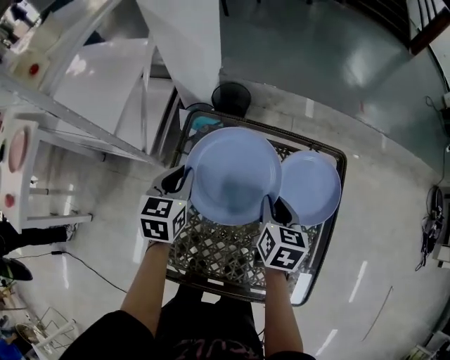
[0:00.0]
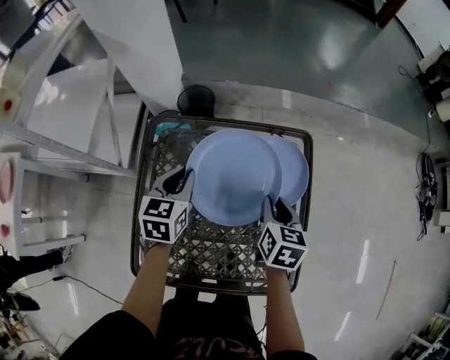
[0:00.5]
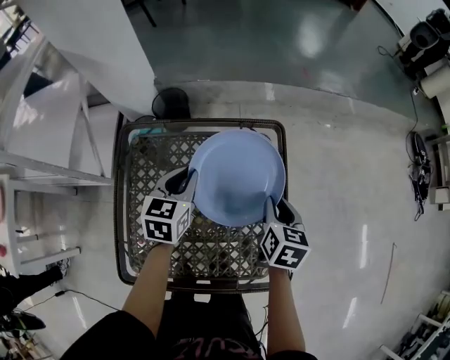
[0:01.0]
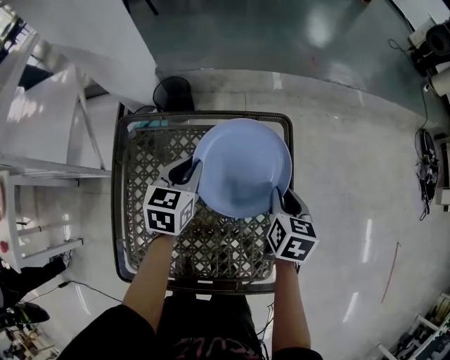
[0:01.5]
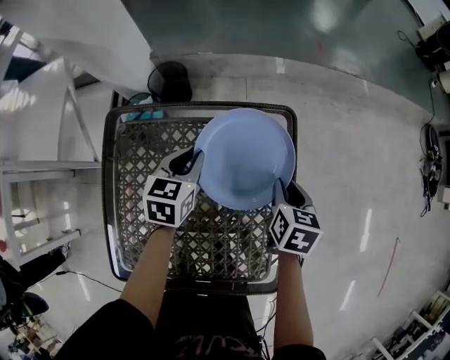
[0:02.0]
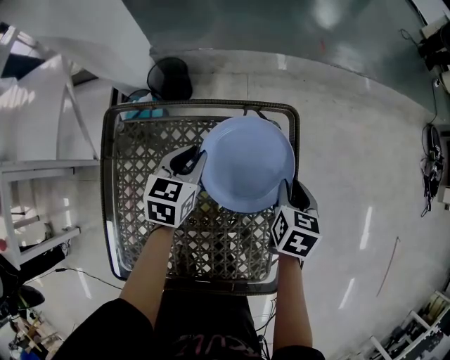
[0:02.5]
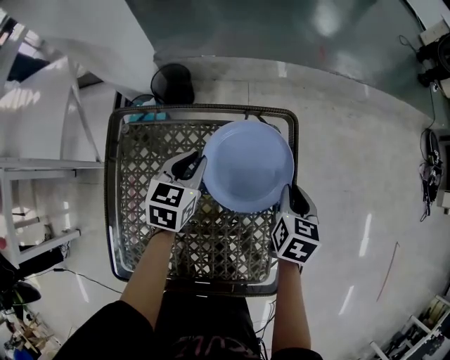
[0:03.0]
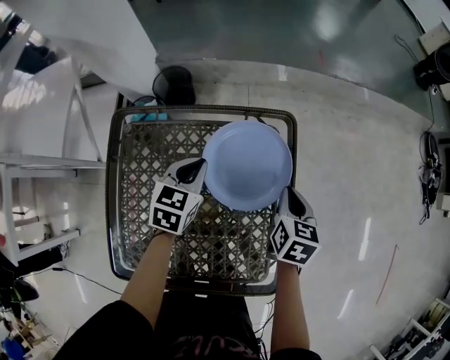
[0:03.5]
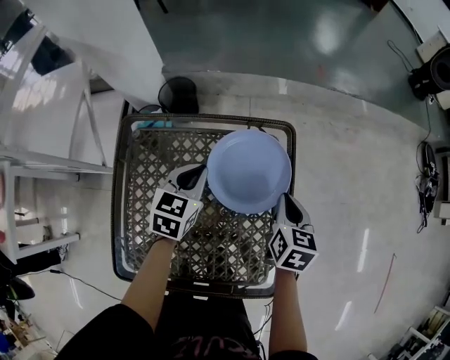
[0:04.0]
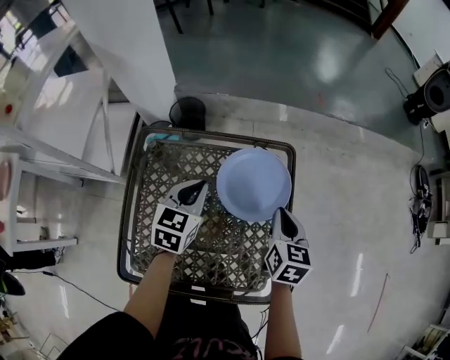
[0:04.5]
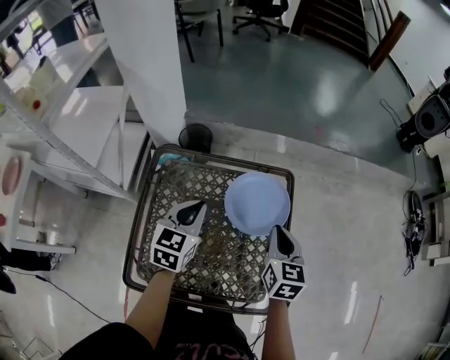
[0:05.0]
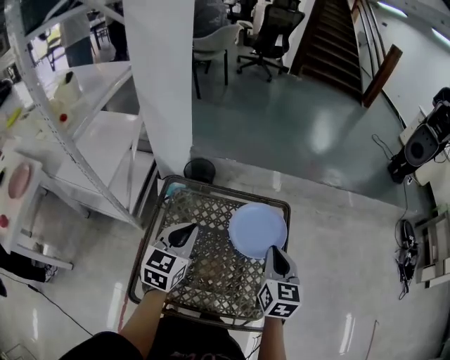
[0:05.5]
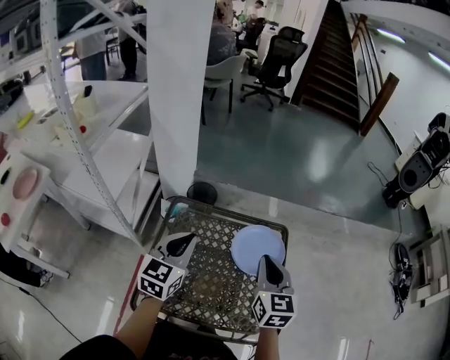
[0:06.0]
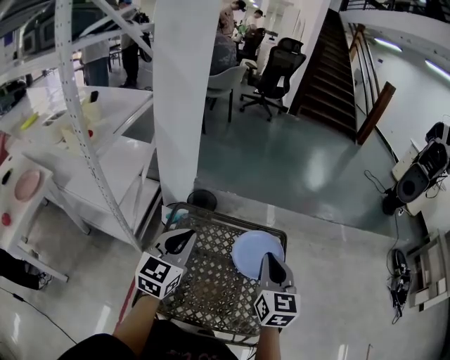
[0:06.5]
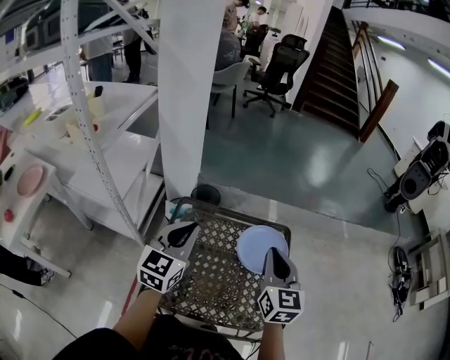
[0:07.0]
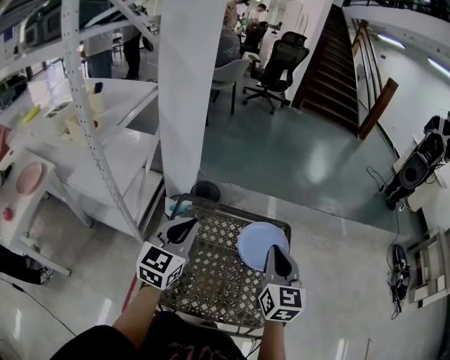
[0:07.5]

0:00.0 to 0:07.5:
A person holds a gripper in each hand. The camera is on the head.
0:00.0 to 0:02.0: The right gripper is displaced to the right by approximately 25 cm, while the left gripper travels to the right and forward by some 25 cm.
0:02.0 to 0:04.0: The right gripper ends up about 5 cm from where it was, and closes up.
0:04.0 to 0:05.5: The right gripper moves upward, to the left and backward, approximately 20 cm, and swivels approximately 20 degrees. Meanwhile the left gripper heads upward, backward and to the left, covering some 25 cm.
0:05.5 to 0:07.5: The grippers both shift upward and to the left by some 10 cm.

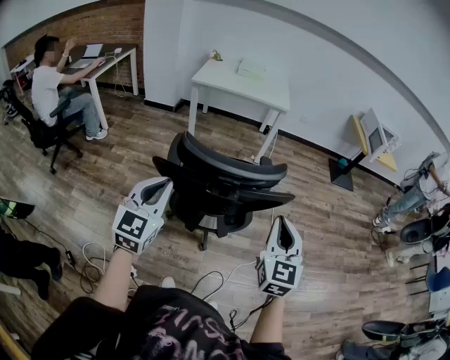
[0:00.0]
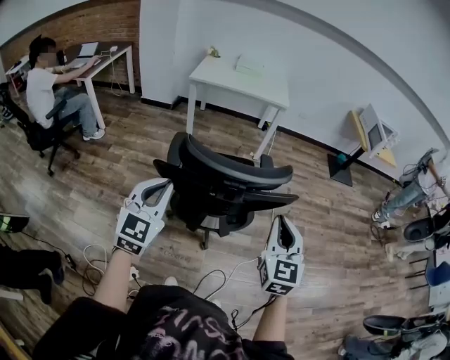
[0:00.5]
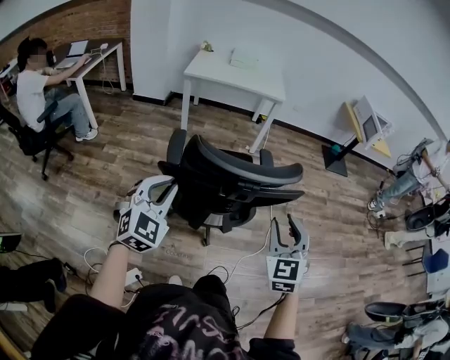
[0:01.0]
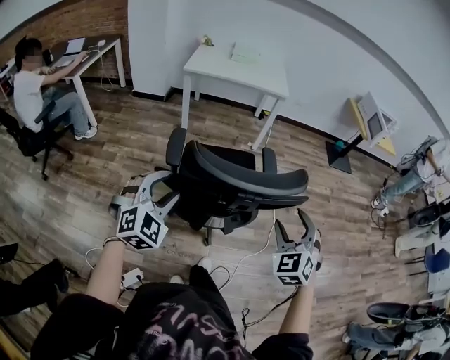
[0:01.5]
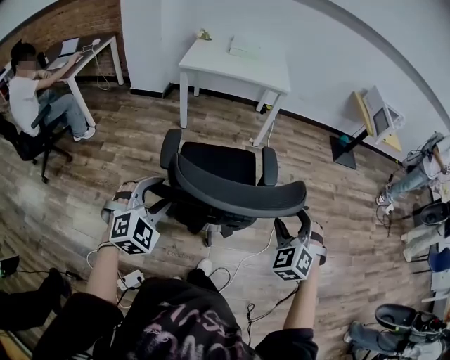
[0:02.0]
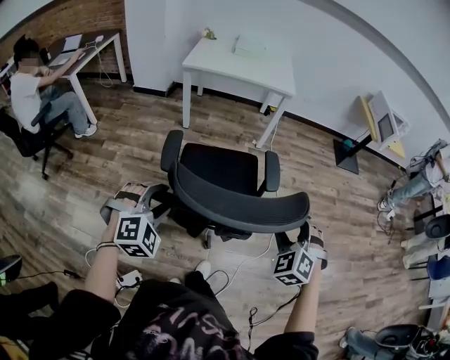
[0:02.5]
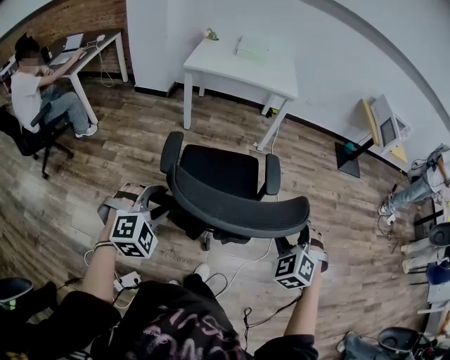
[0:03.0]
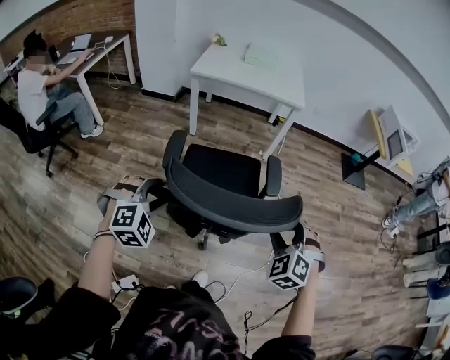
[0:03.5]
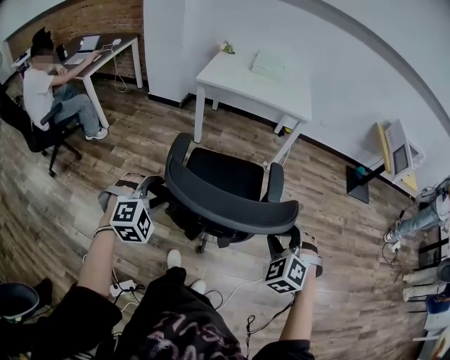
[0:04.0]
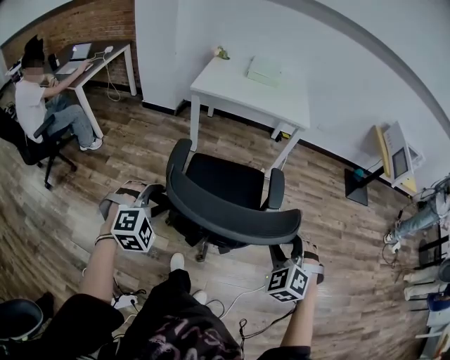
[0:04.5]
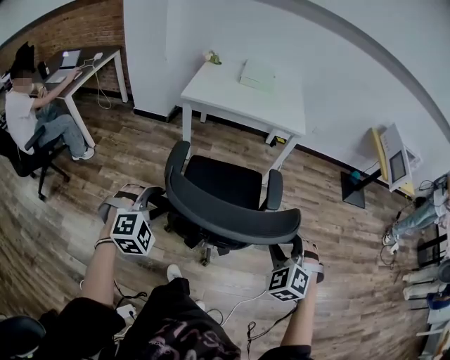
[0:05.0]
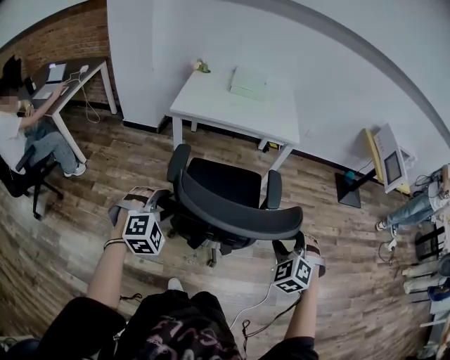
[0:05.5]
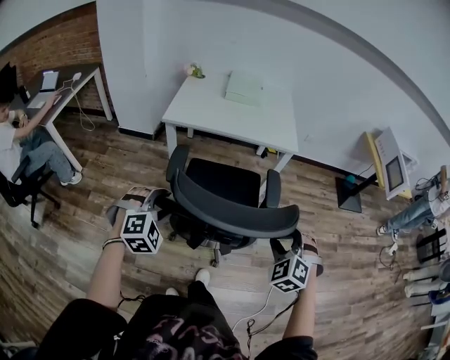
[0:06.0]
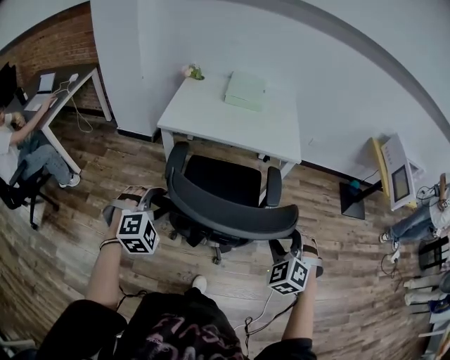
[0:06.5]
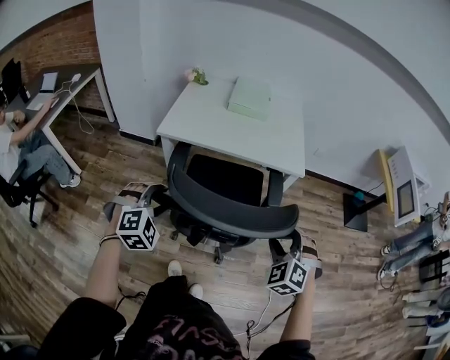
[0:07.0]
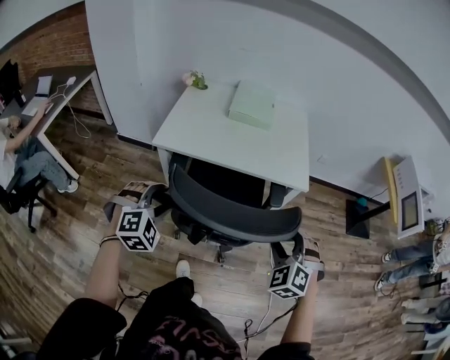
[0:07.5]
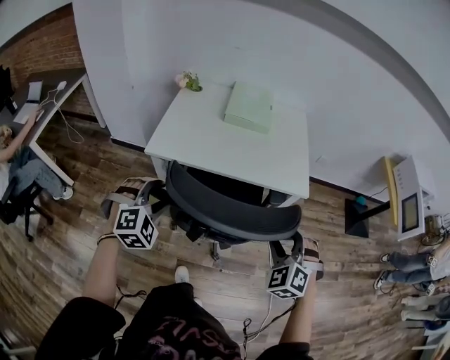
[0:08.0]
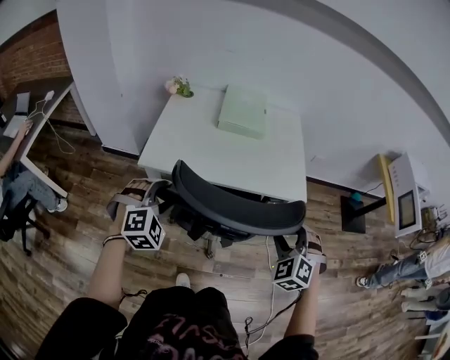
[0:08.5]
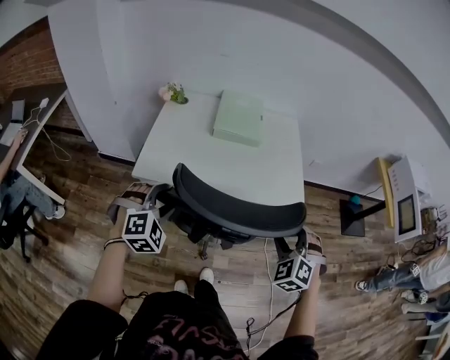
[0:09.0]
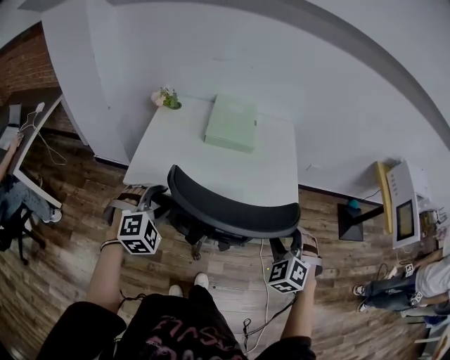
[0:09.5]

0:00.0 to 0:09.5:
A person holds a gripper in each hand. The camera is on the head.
0:00.0 to 0:02.0: The left gripper goes about 15 cm downward and forward, changes its angle by roughly 50 degrees, and opens. Meanwhile the right gripper moves forward and downward, some 15 cm, twists about 50 degrees counterclockwise, seen from behind, and opens its fingers.
0:02.0 to 0:04.0: Both grippers travel together forward, roughly 15 cm.
0:04.0 to 0:05.5: The two grippers go some 20 cm forward.
0:05.5 to 0:07.5: The grippers both shift forward by roughly 35 cm.
0:07.5 to 0:09.5: Both grippers move forward, approximately 20 cm.

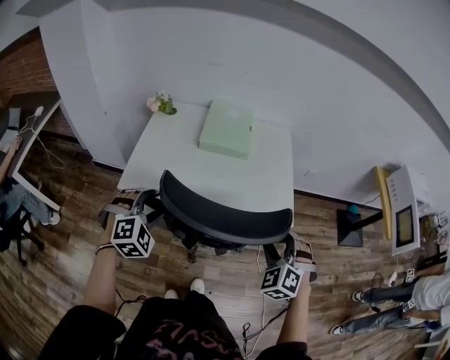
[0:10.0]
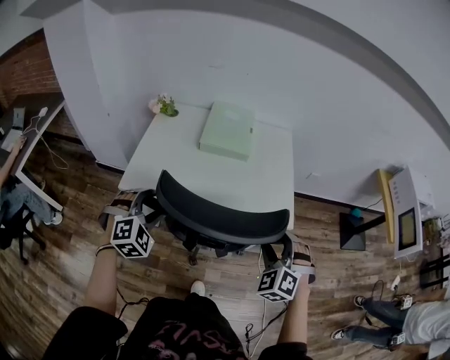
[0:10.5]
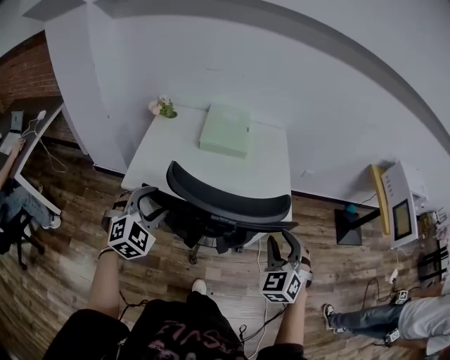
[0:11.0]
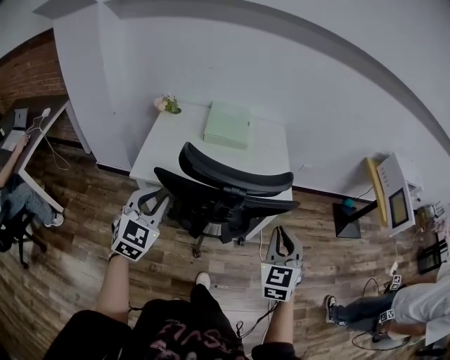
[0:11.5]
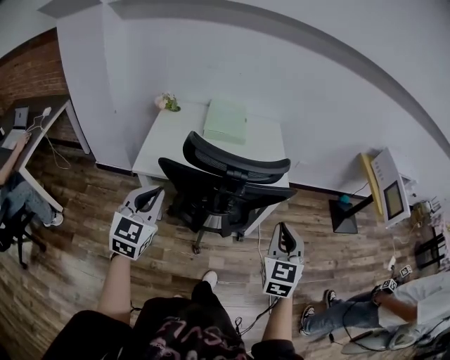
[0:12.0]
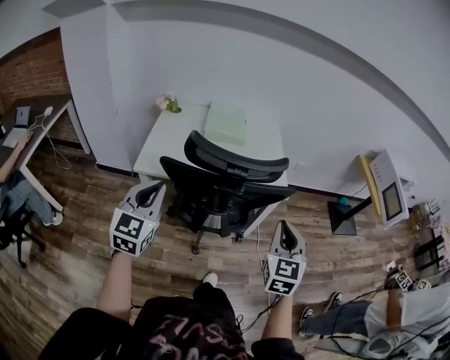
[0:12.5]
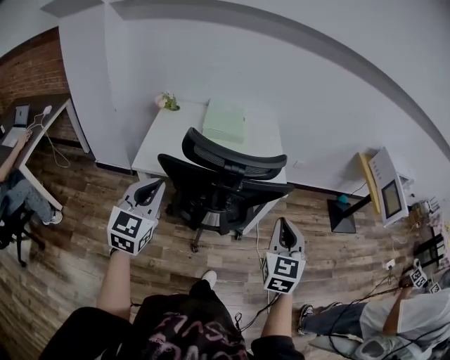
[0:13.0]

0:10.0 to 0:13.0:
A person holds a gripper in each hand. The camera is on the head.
0:10.0 to 0:11.5: Both grippers move backward and upward, approximately 15 cm. The left gripper changes its angle by about 40 degrees, and closes; the right gripper rotates some 50 degrees, and closes its fingers.
0:11.5 to 0:13.0: The left gripper travels backward and upward by roughly 10 cm, while the right gripper travels backward by roughly 5 cm.

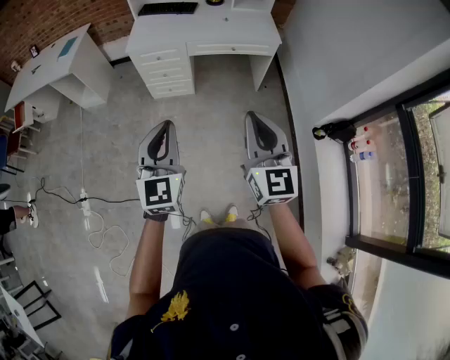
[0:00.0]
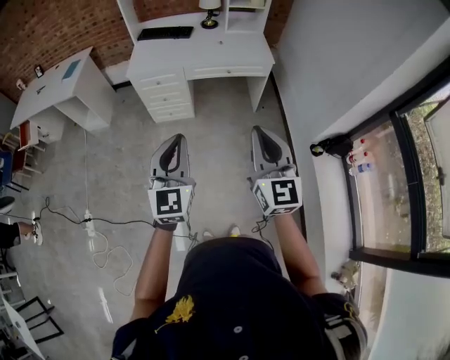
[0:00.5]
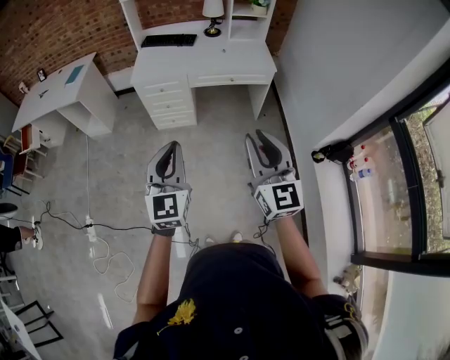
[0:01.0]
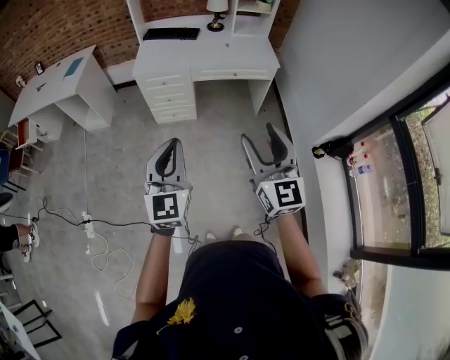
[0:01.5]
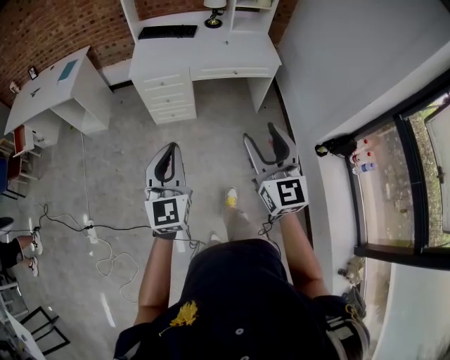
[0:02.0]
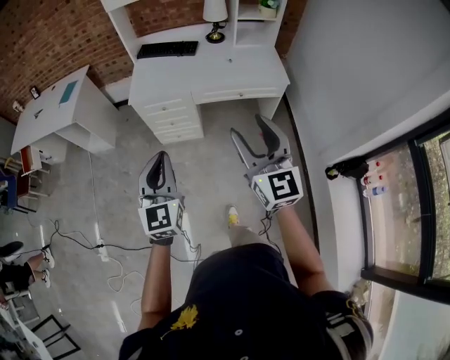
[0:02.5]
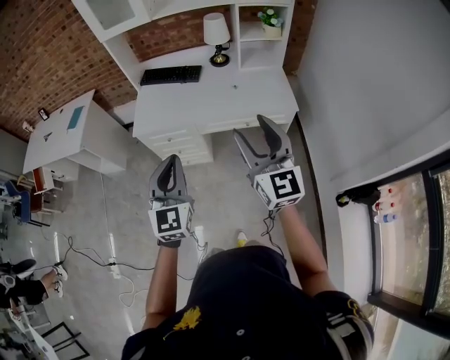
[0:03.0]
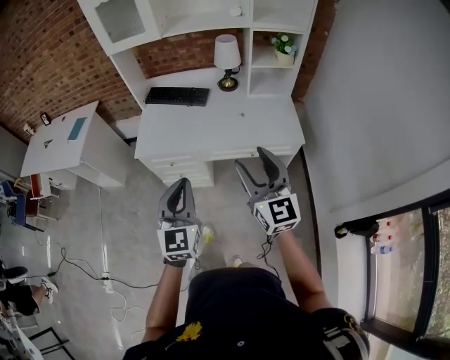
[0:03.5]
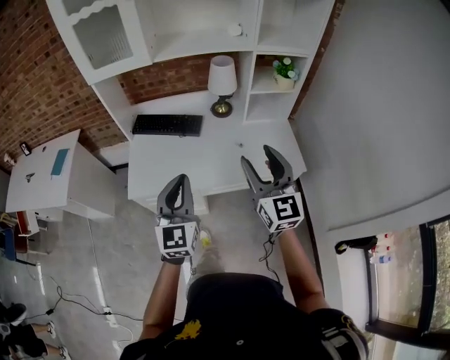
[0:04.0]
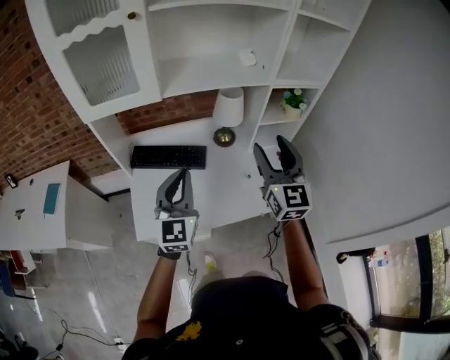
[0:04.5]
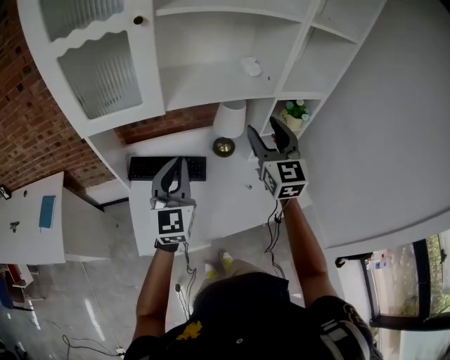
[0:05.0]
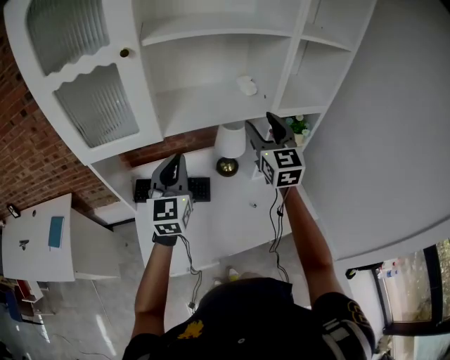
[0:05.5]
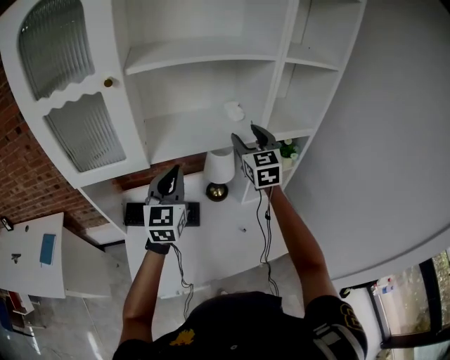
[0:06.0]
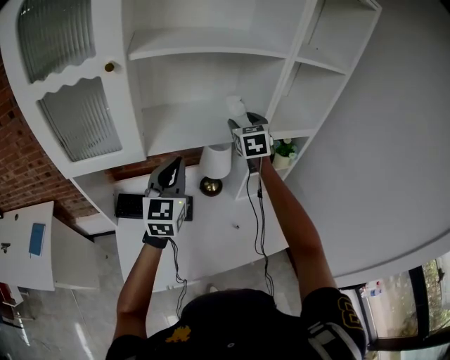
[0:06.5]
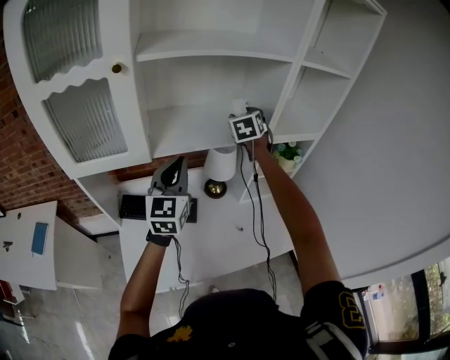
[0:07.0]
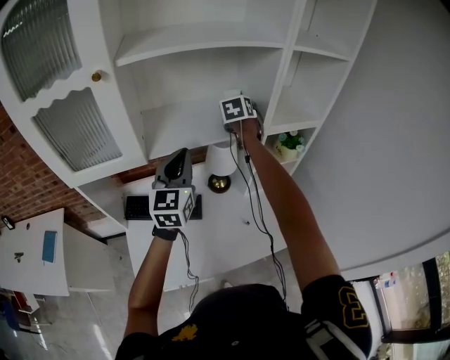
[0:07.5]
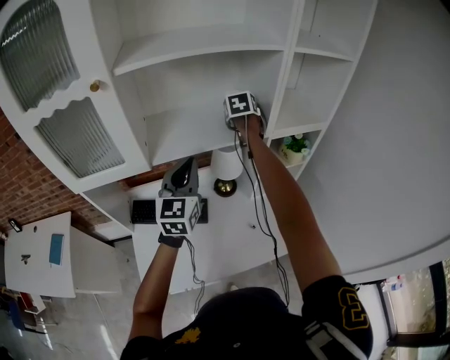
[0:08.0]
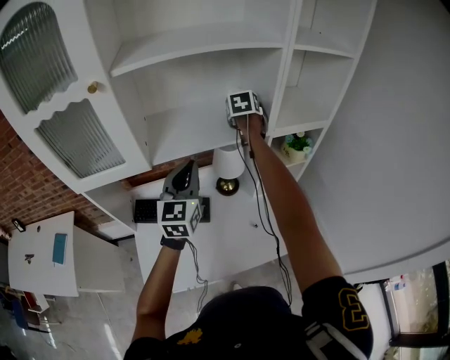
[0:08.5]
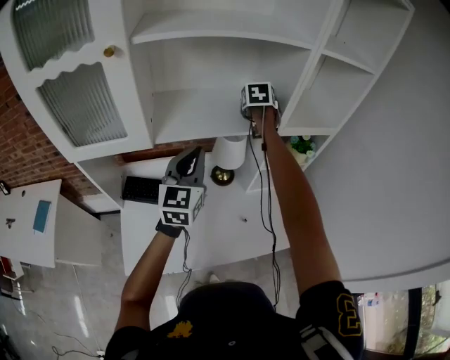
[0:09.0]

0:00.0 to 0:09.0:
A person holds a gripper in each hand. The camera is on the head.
0:00.0 to 0:02.0: The right gripper moves some 5 cm, and opens its fingers; the left gripper goes roughly 5 cm to the left.
0:02.0 to 0:04.5: The pair of grippers is taken forward, roughly 80 cm.
0:04.5 to 0:07.0: The right gripper moves forward, some 40 cm, and swivels approximately 30 degrees. Meanwhile the left gripper is displaced forward by roughly 20 cm.
0:07.0 to 0:09.0: The right gripper goes some 5 cm forward, swivels some 20 degrees, and closes its fingers.
